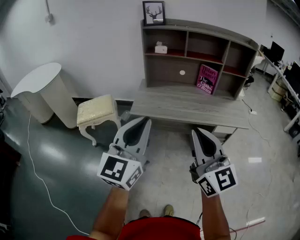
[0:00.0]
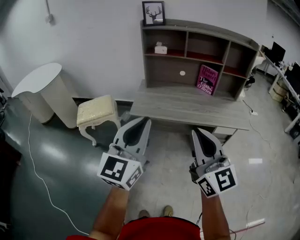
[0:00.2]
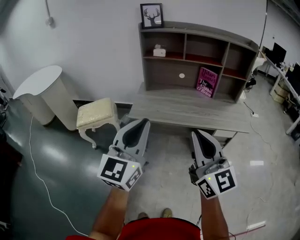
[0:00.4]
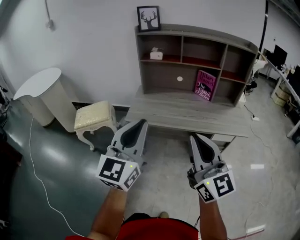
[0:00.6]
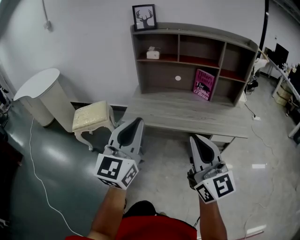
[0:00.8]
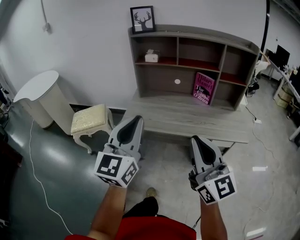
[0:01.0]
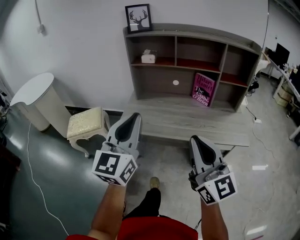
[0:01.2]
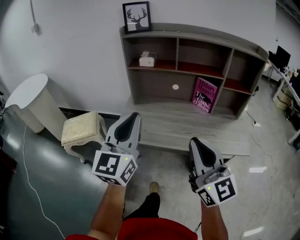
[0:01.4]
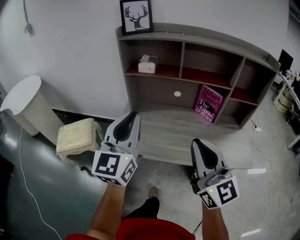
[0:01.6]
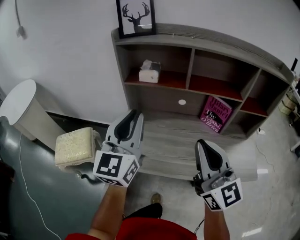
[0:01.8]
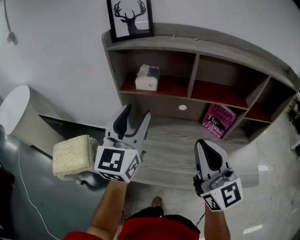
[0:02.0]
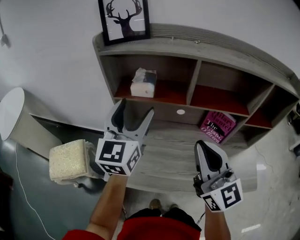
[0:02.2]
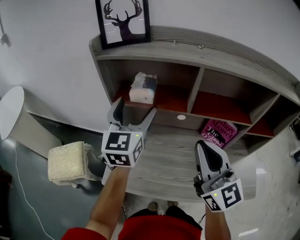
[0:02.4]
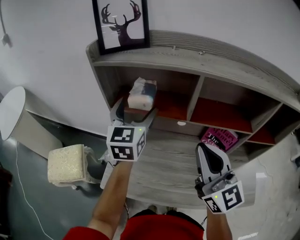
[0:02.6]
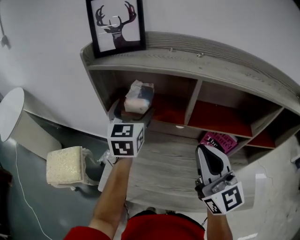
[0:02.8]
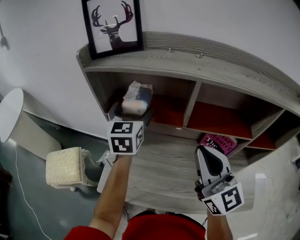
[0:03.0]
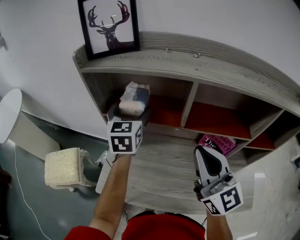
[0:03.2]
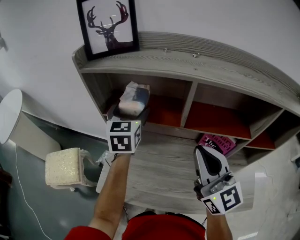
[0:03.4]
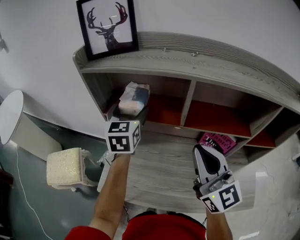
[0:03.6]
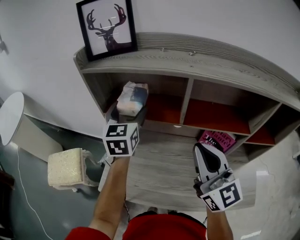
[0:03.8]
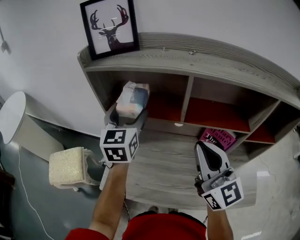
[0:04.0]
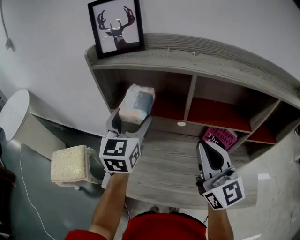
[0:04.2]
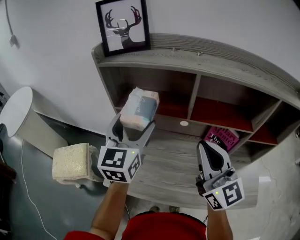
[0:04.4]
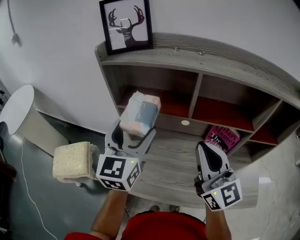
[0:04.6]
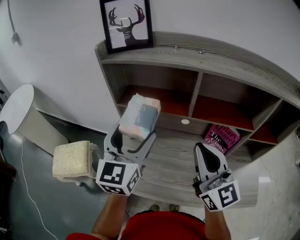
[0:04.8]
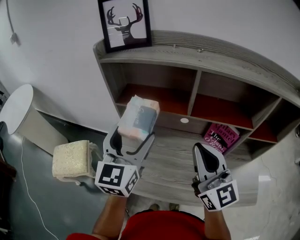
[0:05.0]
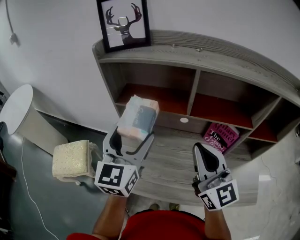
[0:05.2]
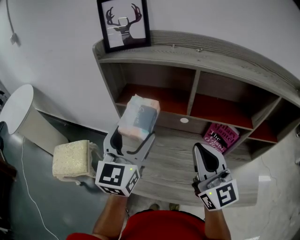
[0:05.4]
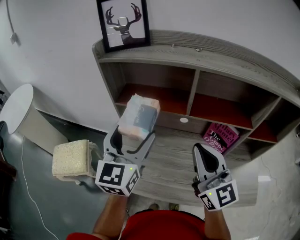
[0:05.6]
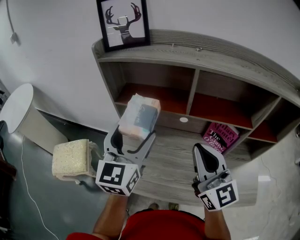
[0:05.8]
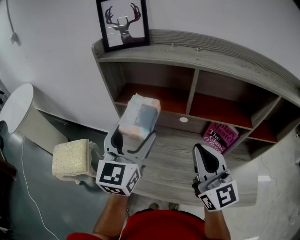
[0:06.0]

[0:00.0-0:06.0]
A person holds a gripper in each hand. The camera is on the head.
0:00.0 to 0:01.6: The right gripper moves forward and to the right, about 30 cm; the left gripper moves forward, roughly 30 cm.
0:01.6 to 0:03.0: The two grippers go about 35 cm forward. The left gripper changes its angle by approximately 30 degrees, and opens its fingers.
0:03.0 to 0:04.4: The left gripper shifts roughly 10 cm backward.
0:04.4 to 0:06.0: The grippers stay close to where they were, moving slightly.

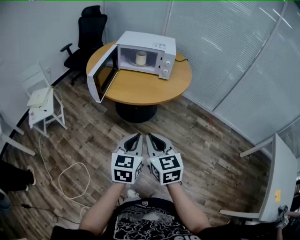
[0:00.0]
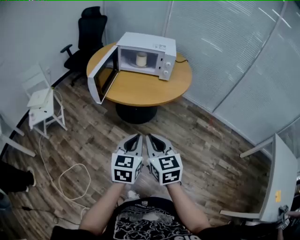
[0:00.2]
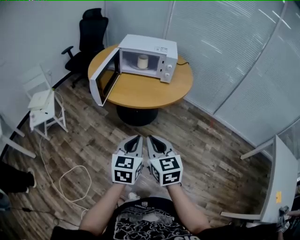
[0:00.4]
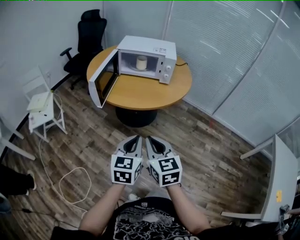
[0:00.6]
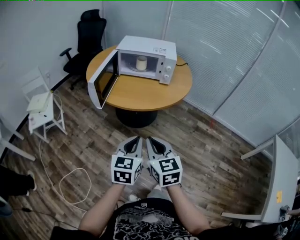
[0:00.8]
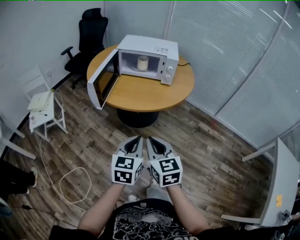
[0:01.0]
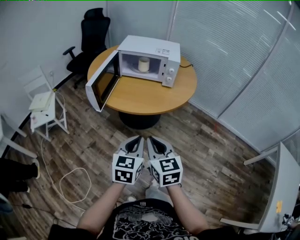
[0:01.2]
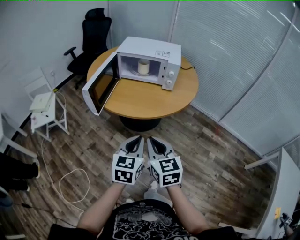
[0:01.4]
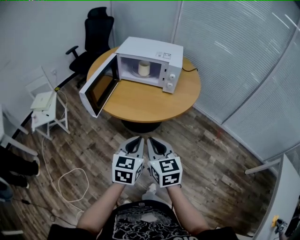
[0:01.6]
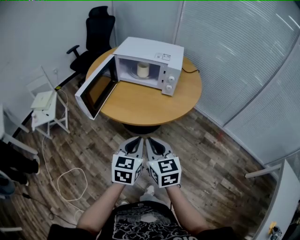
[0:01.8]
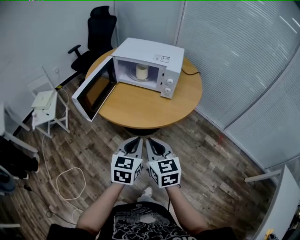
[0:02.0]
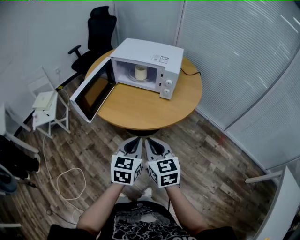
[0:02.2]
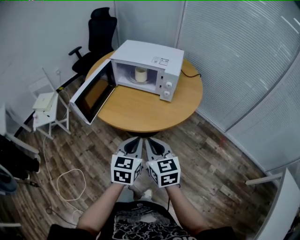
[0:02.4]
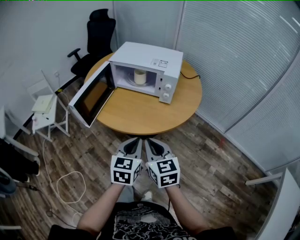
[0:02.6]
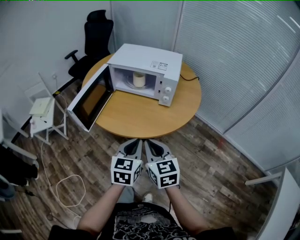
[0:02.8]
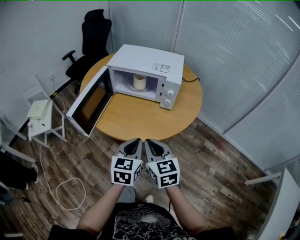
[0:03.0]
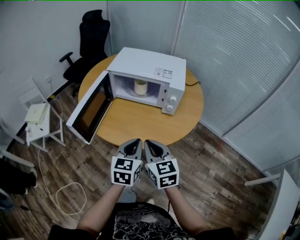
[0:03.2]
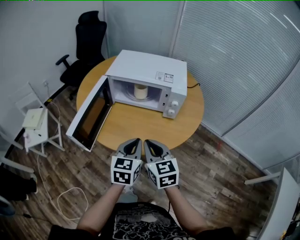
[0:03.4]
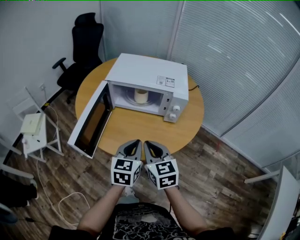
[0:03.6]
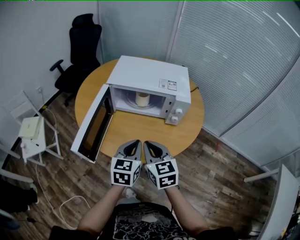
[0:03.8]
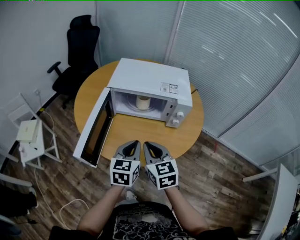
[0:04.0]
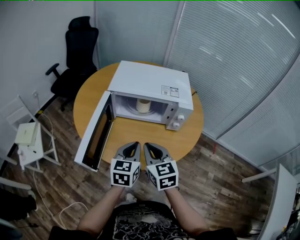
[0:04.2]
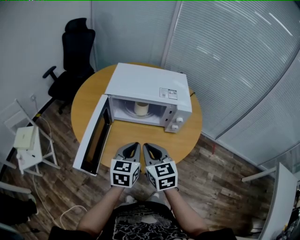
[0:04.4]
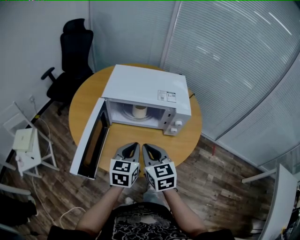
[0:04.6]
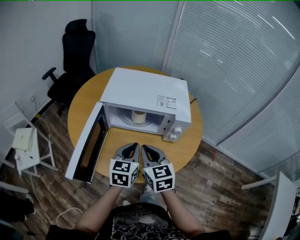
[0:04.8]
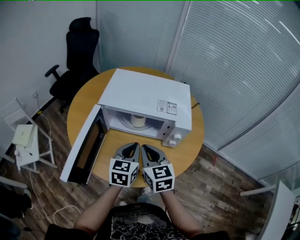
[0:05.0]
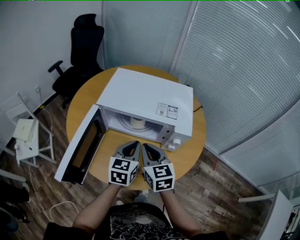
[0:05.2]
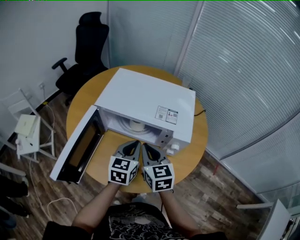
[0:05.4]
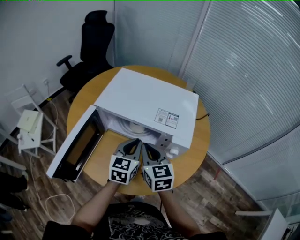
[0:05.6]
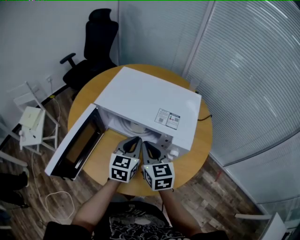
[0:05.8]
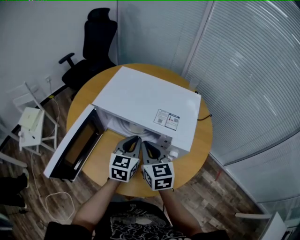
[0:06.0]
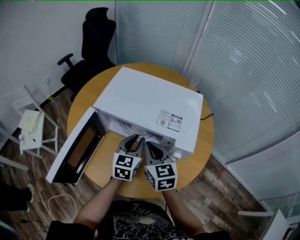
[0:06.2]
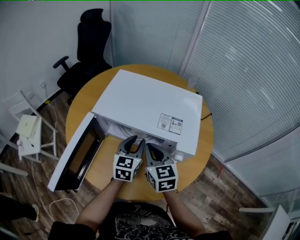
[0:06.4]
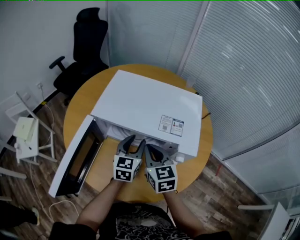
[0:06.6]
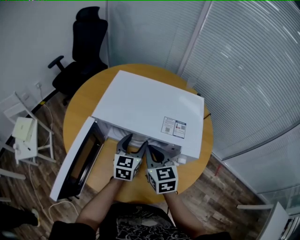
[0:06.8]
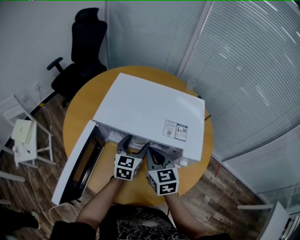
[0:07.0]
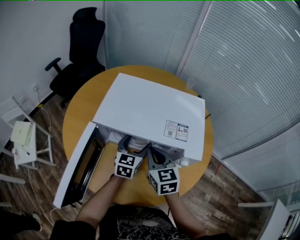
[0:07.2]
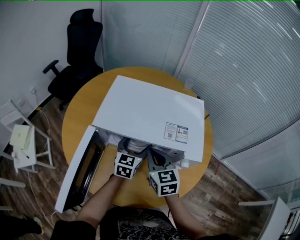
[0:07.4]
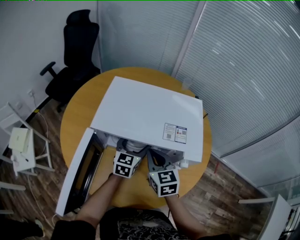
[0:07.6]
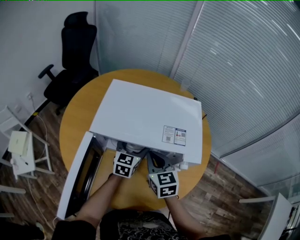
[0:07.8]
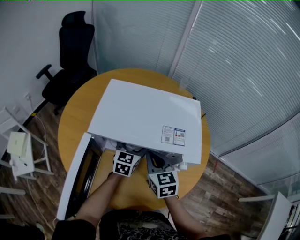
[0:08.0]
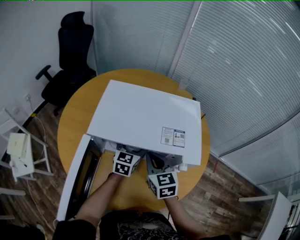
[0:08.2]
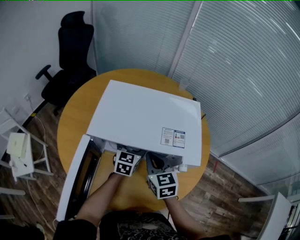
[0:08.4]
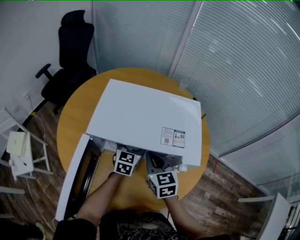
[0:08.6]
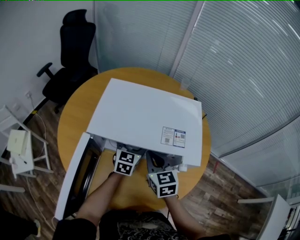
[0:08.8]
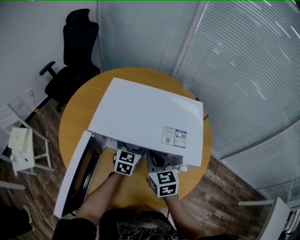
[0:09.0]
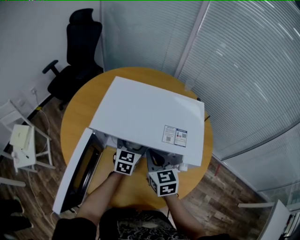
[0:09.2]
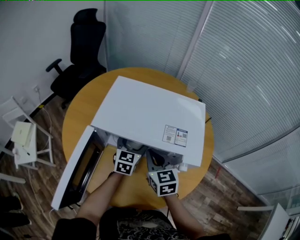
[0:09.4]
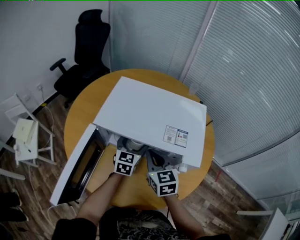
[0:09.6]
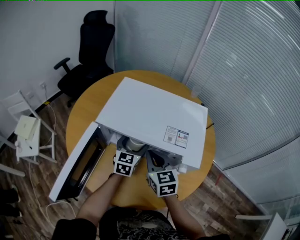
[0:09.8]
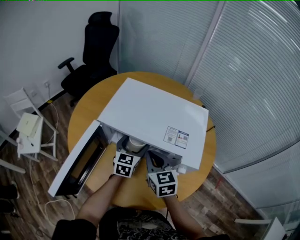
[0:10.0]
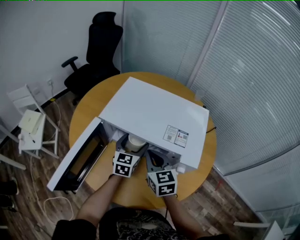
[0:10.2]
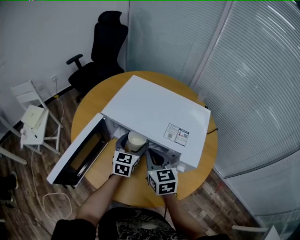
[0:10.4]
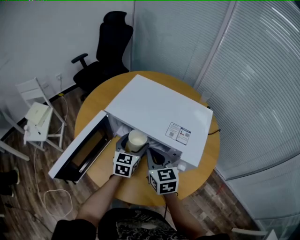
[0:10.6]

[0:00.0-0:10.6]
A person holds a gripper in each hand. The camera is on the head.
0:00.0 to 0:01.6: The two grippers go roughly 15 cm forward.
0:01.6 to 0:03.0: Both grippers travel together forward, about 15 cm.
0:03.0 to 0:04.6: The two grippers go about 20 cm forward and to the left.
0:04.6 to 0:06.0: Both grippers travel together forward and to the right, about 15 cm.
0:06.0 to 0:07.6: The left gripper heads forward and downward, covering approximately 10 cm, and opens up. Meanwhile the right gripper ends up roughly 5 cm from where it was.
0:07.6 to 0:09.0: The grippers stay close to where they were, moving slightly.
0:09.0 to 0:10.6: The left gripper goes approximately 5 cm backward.

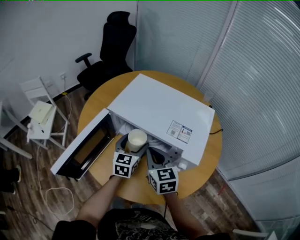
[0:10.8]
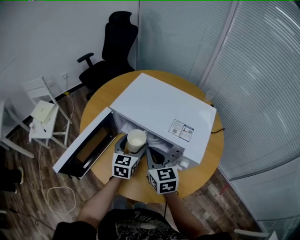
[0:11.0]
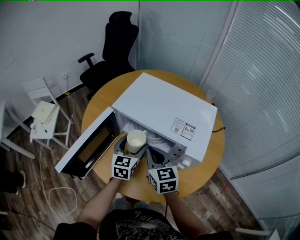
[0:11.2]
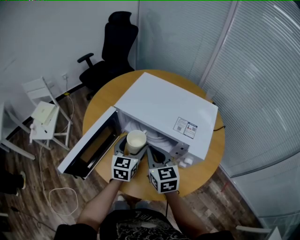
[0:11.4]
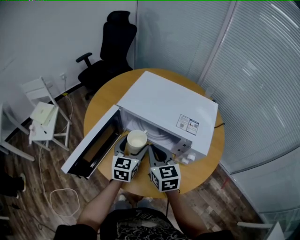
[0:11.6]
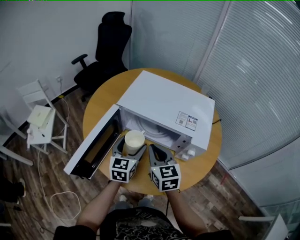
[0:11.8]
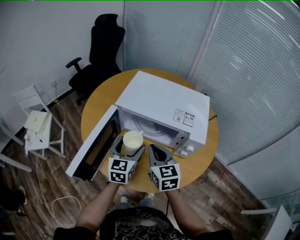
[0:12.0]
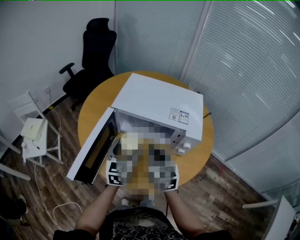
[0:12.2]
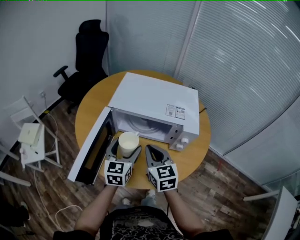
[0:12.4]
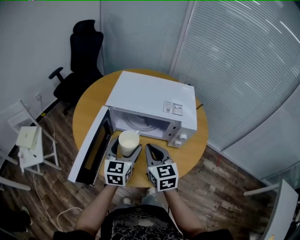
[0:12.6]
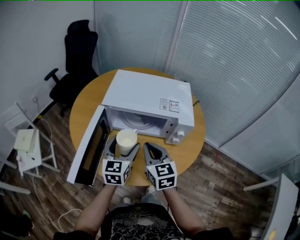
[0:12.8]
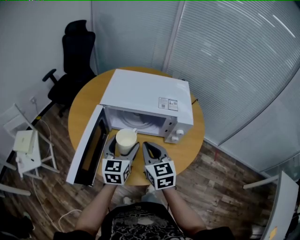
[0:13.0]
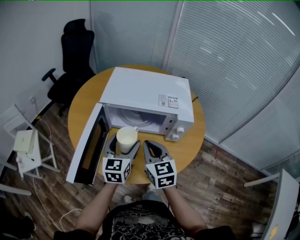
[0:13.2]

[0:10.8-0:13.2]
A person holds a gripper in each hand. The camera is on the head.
0:10.8 to 0:12.0: The left gripper shifts some 10 cm backward and to the left; the right gripper moves roughly 5 cm.
0:12.0 to 0:13.2: The grippers make only small movements.

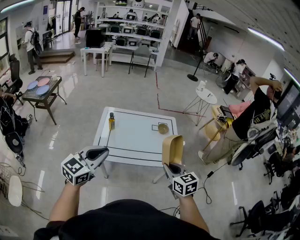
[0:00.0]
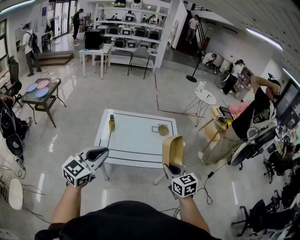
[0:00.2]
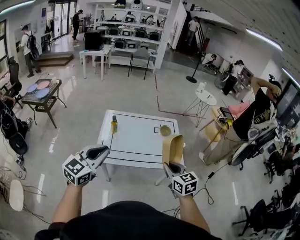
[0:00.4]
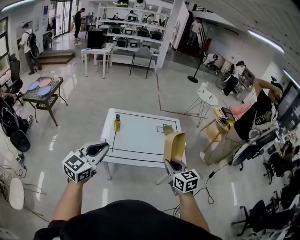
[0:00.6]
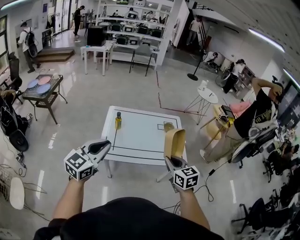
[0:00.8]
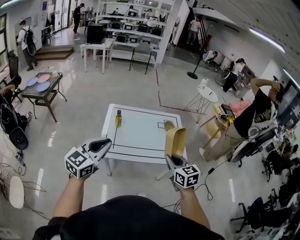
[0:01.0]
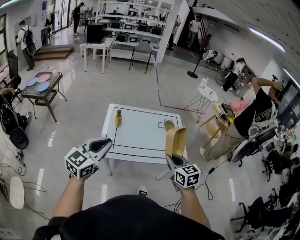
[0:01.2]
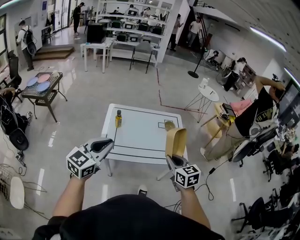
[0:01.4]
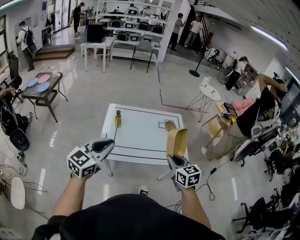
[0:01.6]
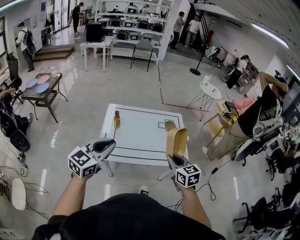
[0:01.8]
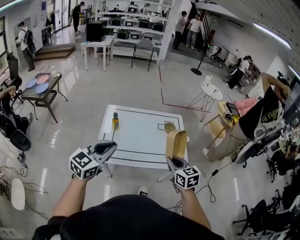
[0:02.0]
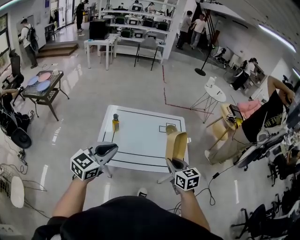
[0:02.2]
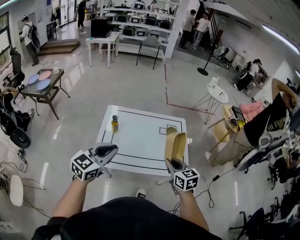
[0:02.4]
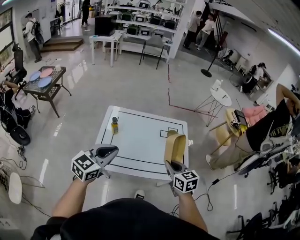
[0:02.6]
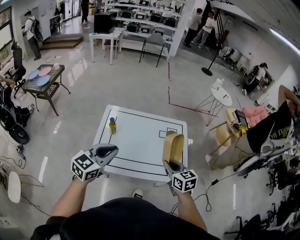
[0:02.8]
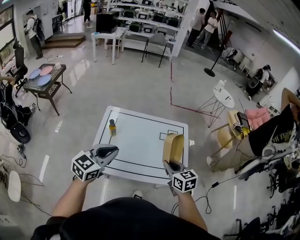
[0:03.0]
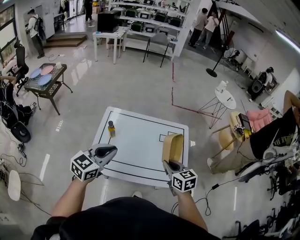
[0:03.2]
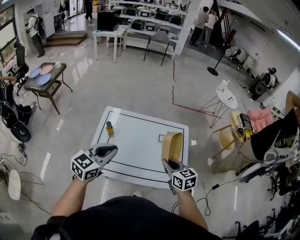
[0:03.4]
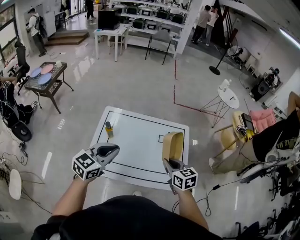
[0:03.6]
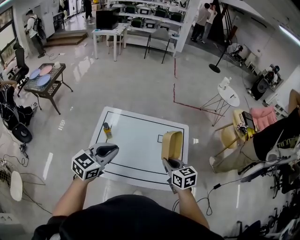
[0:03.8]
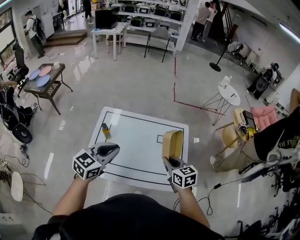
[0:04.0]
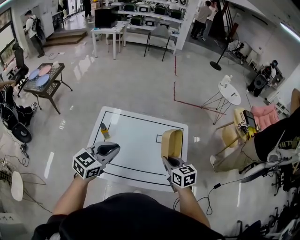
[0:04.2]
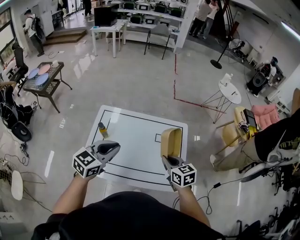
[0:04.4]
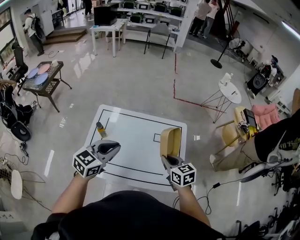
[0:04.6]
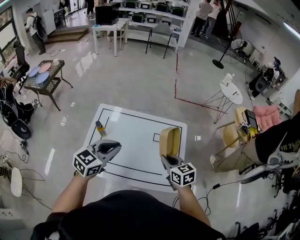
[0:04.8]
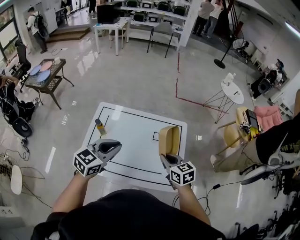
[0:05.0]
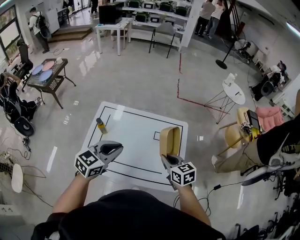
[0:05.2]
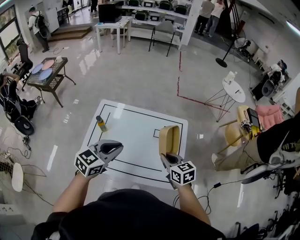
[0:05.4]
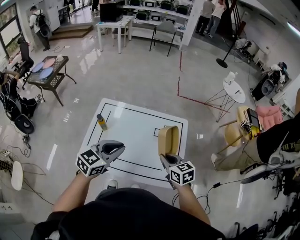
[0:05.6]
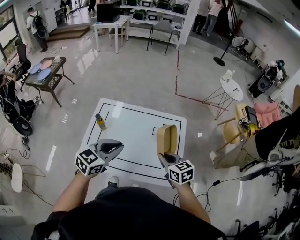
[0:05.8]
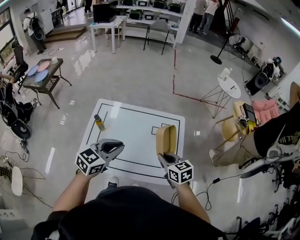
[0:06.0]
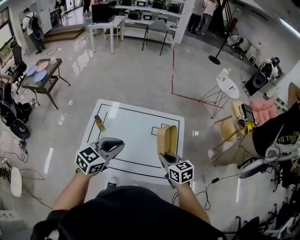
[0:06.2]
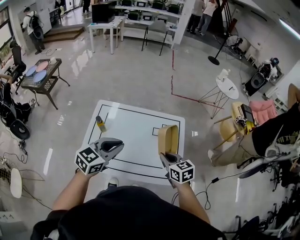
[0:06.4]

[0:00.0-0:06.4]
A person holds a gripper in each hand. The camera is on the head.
0:00.0 to 0:01.6: Both grippers travel together to the left, approximately 5 cm.
0:01.6 to 0:03.2: Both grippers travel together forward, some 20 cm.
0:03.2 to 0:04.8: The left gripper goes roughly 15 cm to the right and forward; the right gripper moves forward and to the right, roughly 10 cm.
0:04.8 to 0:06.4: There are only small adjustments of the grippers.
